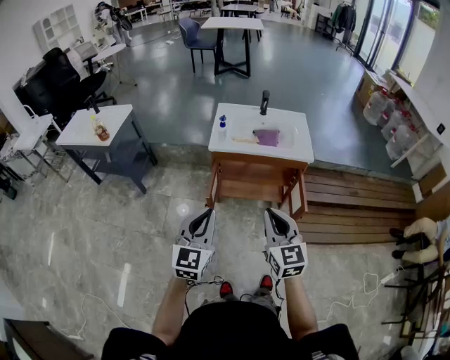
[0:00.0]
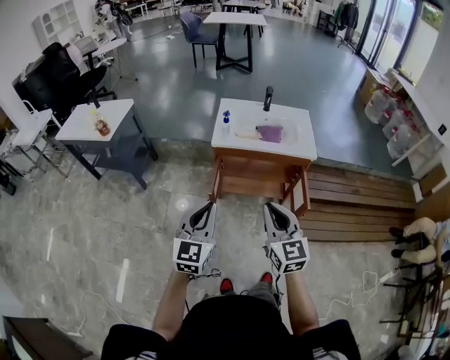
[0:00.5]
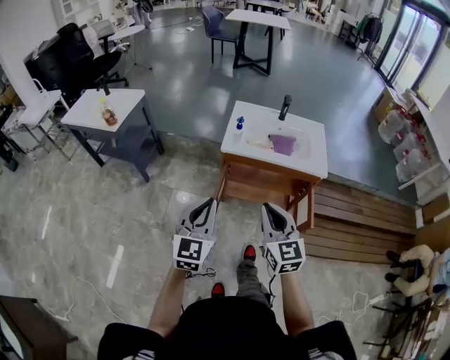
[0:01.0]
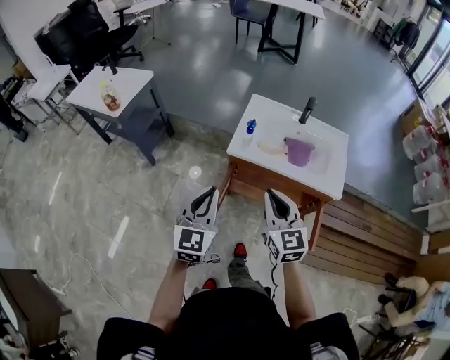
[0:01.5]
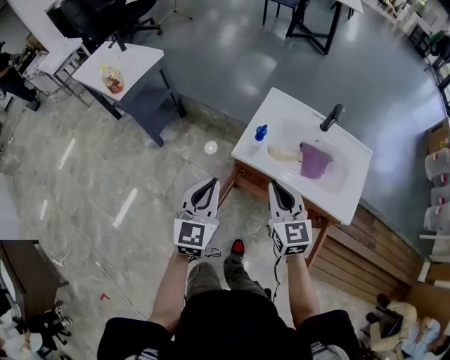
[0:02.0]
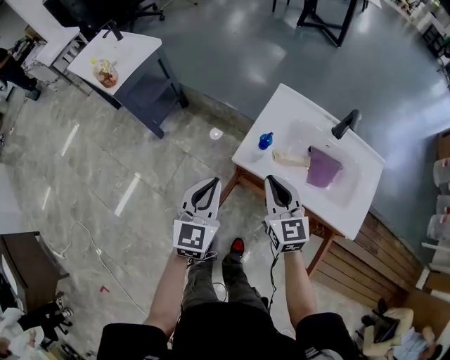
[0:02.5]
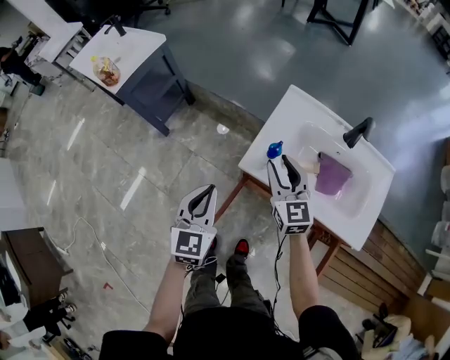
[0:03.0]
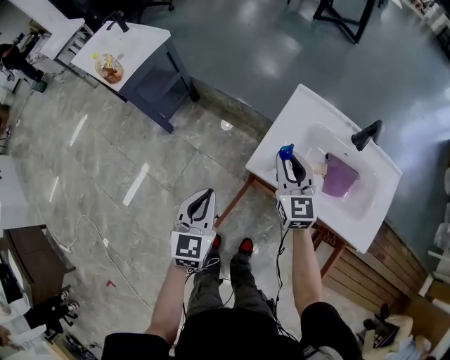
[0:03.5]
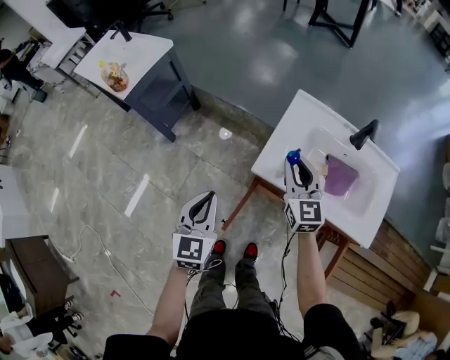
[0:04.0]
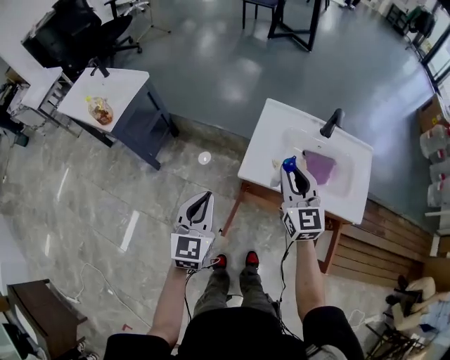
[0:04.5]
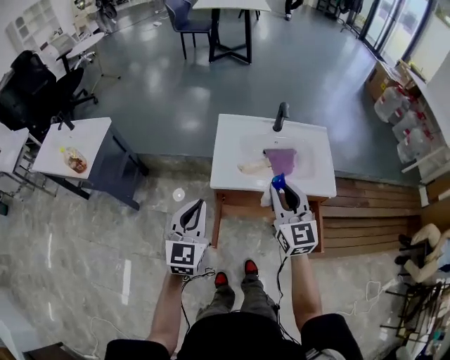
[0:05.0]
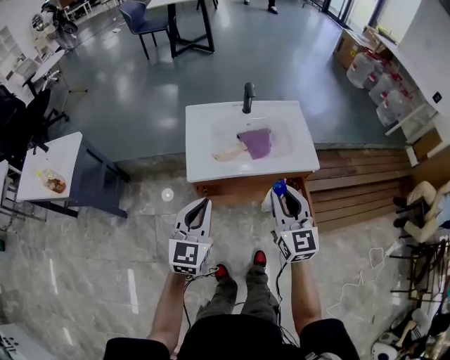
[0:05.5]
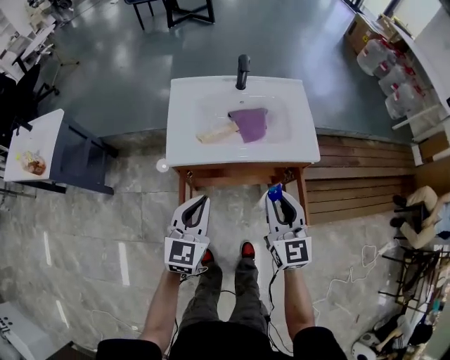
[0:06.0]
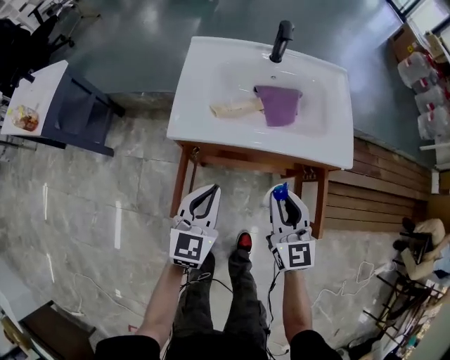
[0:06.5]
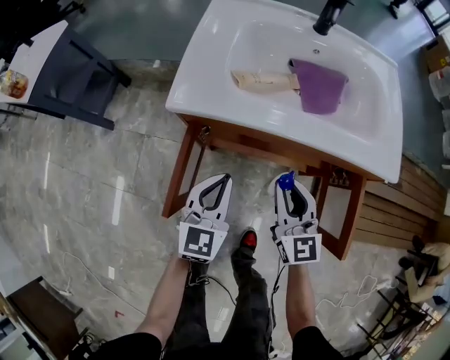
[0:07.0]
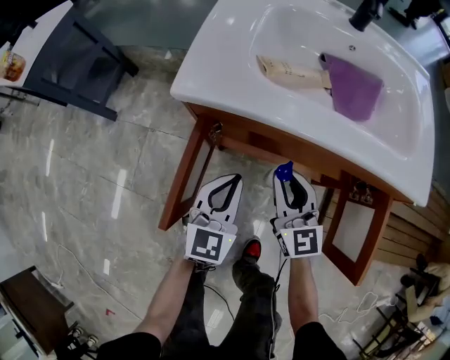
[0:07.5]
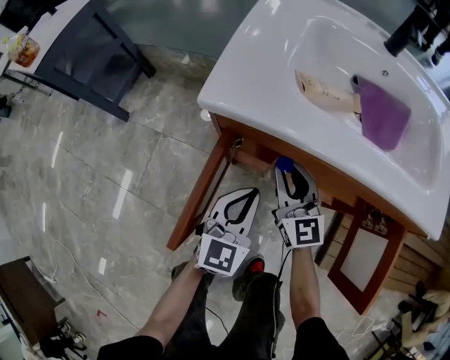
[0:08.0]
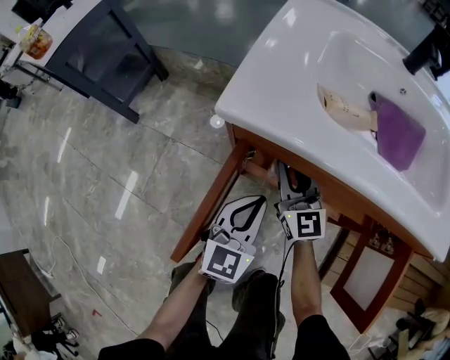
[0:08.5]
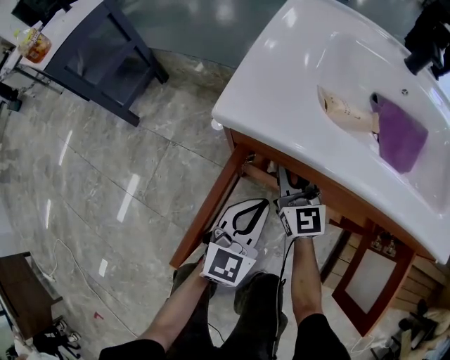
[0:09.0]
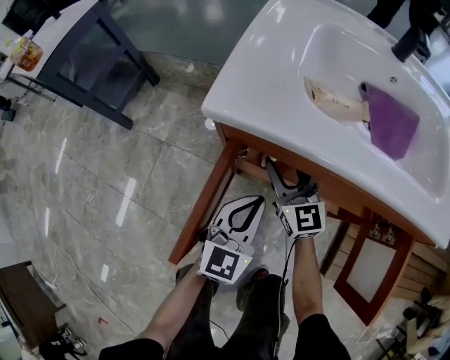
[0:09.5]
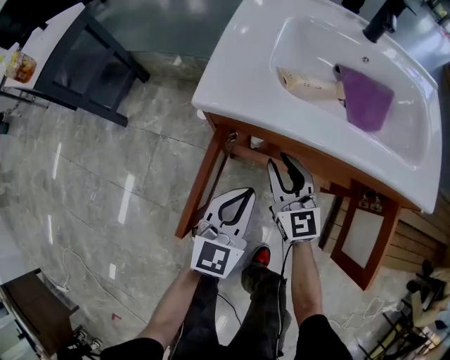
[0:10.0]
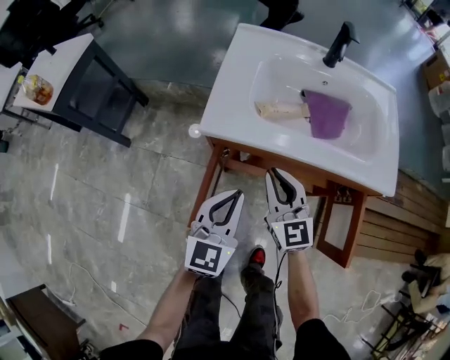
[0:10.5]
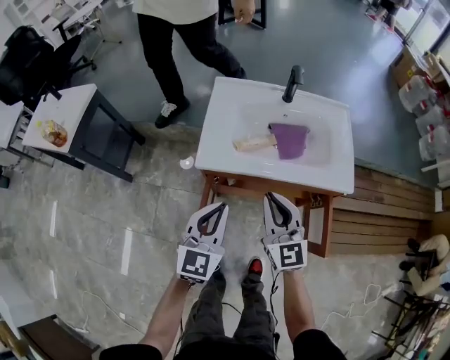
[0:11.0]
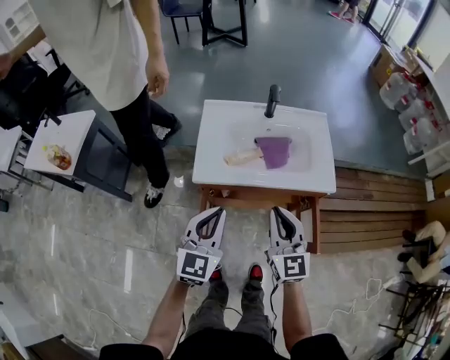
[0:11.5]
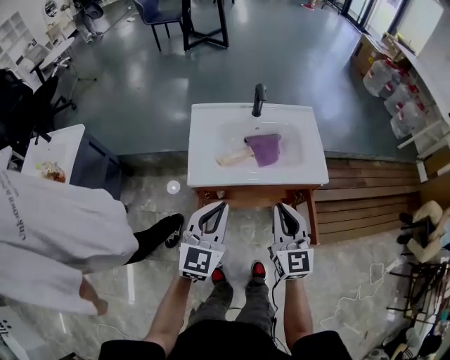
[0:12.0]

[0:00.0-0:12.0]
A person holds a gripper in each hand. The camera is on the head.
0:00.0 to 0:02.0: Both grippers move forward, some 35 cm. The right gripper changes its angle by some 20 degrees, while the left gripper turns by roughly 20 degrees.
0:02.0 to 0:04.0: The left gripper goes some 10 cm downward, to the left and forward, while the right gripper travels forward by roughly 15 cm.
0:04.0 to 0:06.0: The right gripper goes upward and returns, approximately 15 cm each way, and rotates roughly 30 degrees. The left gripper travels upward and back again, some 10 cm each way, and turns by approximately 40 degrees.
0:06.0 to 0:08.0: The right gripper moves downward and forward, roughly 40 cm, and turns by some 30 degrees; the left gripper heads downward, covering approximately 35 cm.
0:08.0 to 0:10.0: The left gripper shifts approximately 5 cm upward. The right gripper reaches approximately 5 cm forward, then returns, and opens, then closes again.
0:10.0 to 0:12.0: Both grippers move upward, about 35 cm. The right gripper rotates some 30 degrees, and closes up.

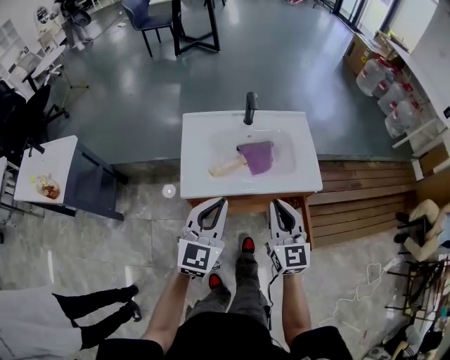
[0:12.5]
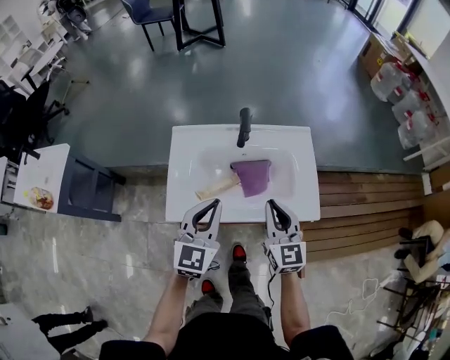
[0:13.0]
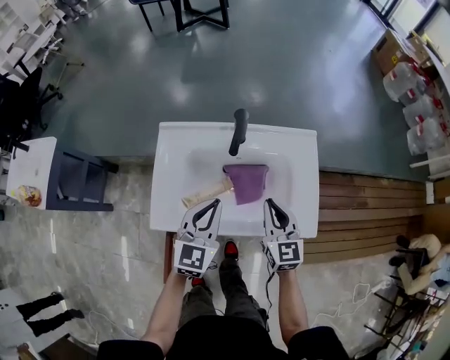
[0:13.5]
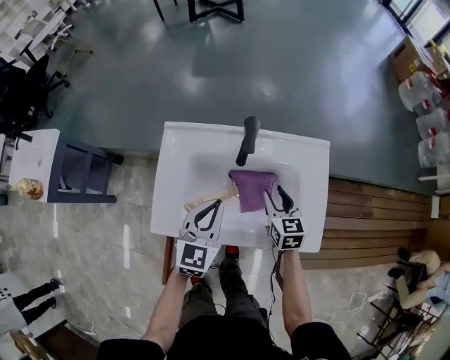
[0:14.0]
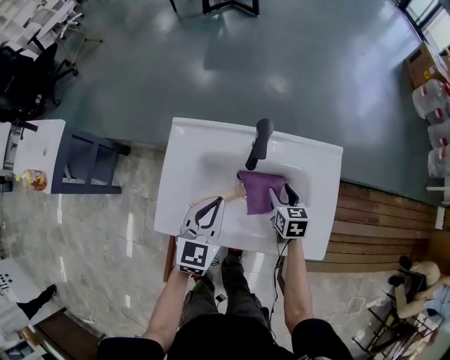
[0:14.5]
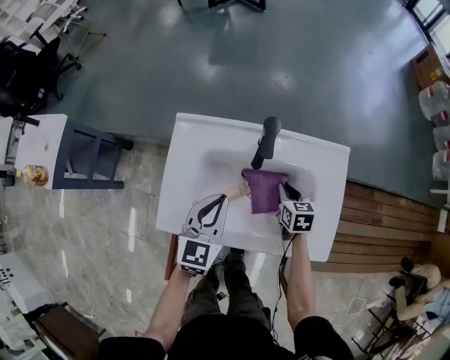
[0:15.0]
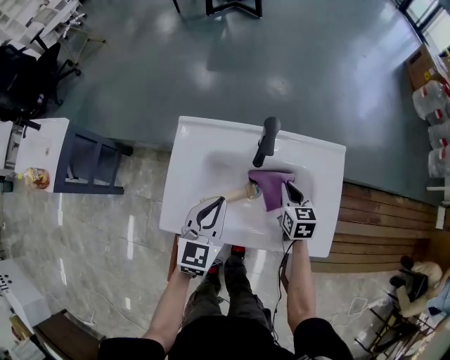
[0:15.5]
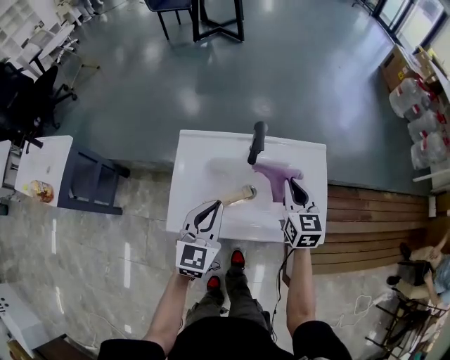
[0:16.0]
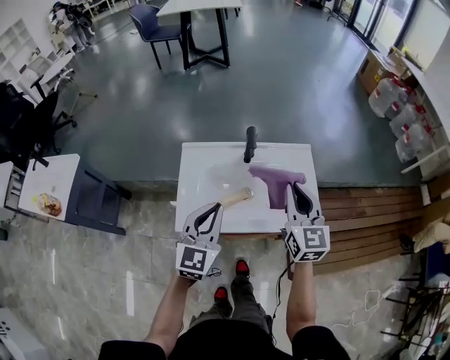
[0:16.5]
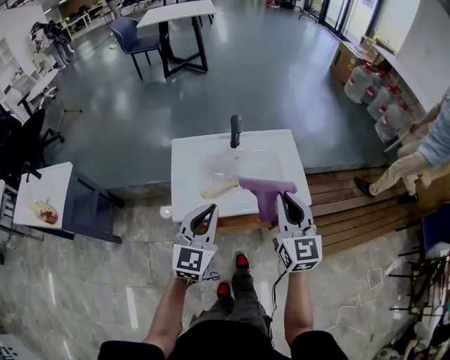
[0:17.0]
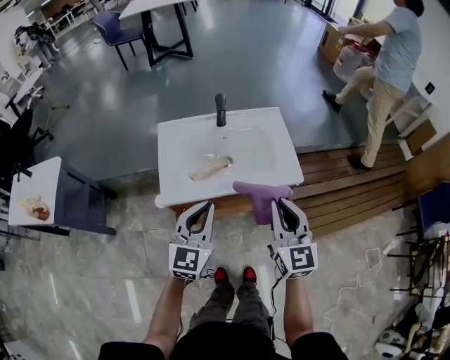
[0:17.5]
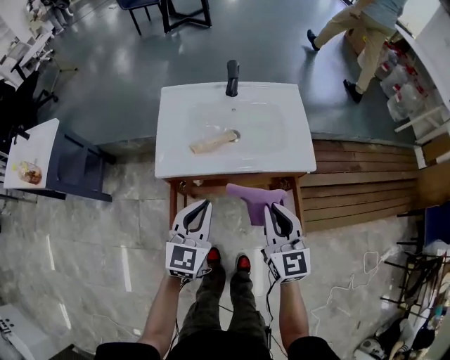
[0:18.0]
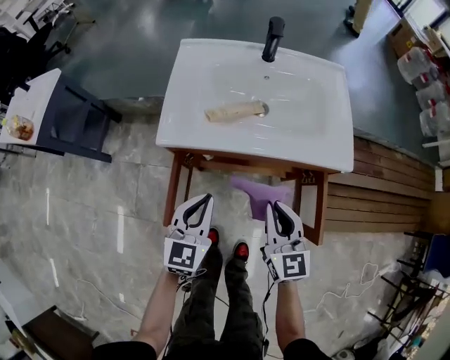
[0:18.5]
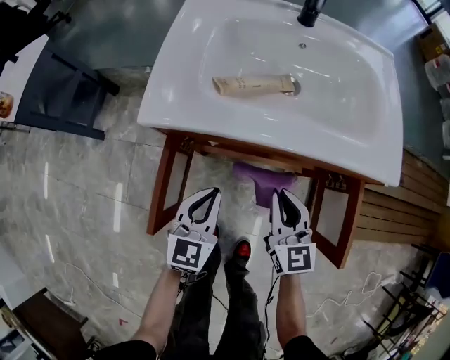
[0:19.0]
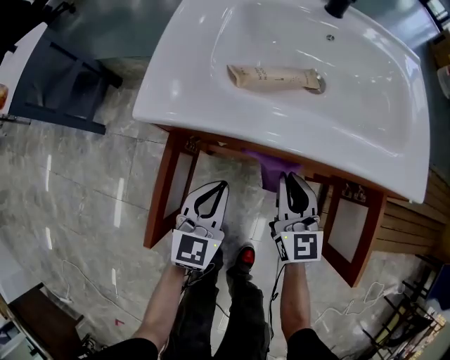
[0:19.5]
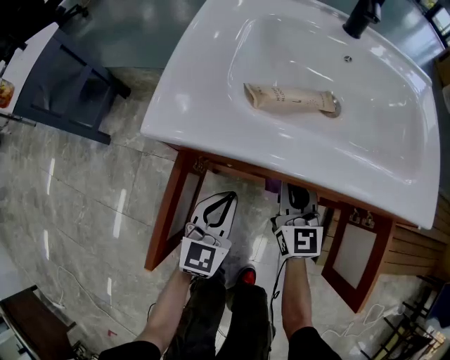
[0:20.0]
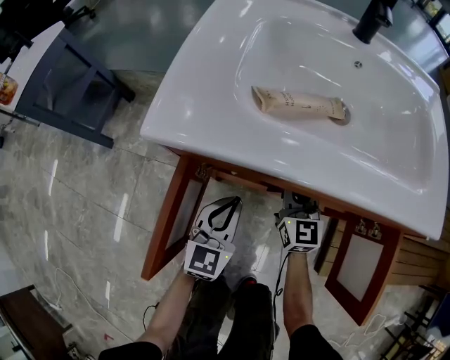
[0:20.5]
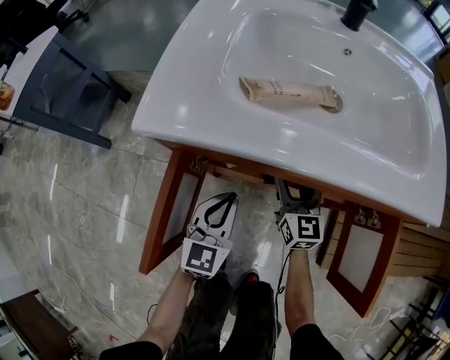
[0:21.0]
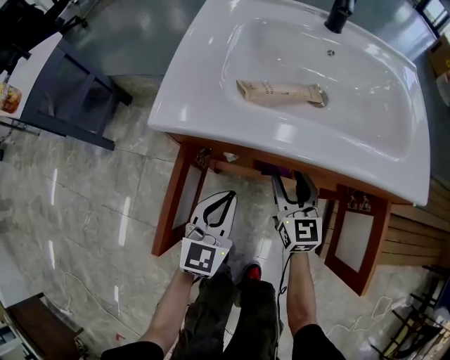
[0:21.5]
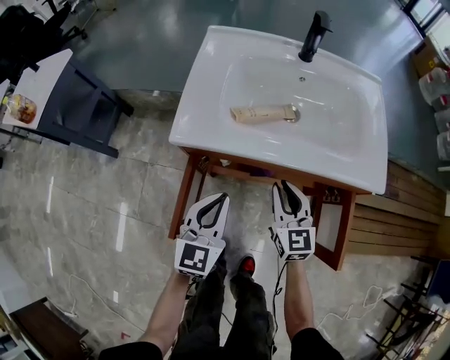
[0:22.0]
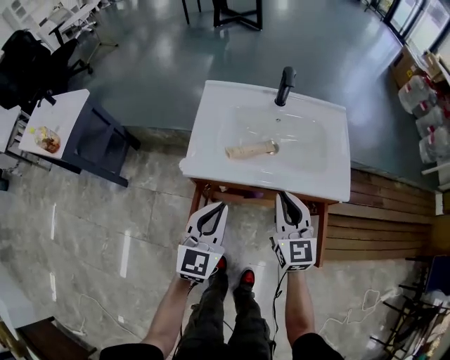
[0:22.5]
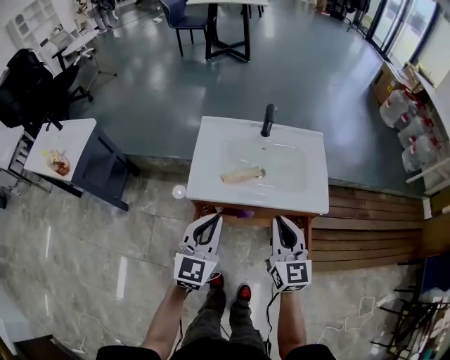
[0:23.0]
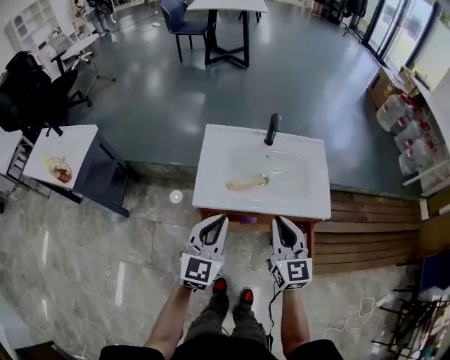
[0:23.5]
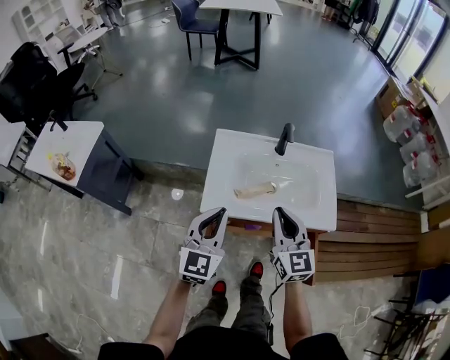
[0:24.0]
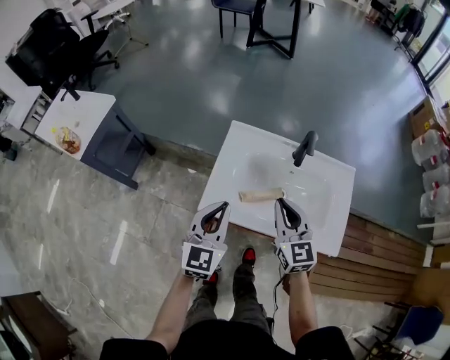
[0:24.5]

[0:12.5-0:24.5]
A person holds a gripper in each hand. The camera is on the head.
0:12.5 to 0:14.5: The two grippers go roughly 35 cm forward and downward. The left gripper swivels approximately 20 degrees; the right gripper angles its fingers downward, by roughly 40 degrees, and opens up.
0:14.5 to 0:16.5: The right gripper goes some 35 cm upward, points its fingers approximately 40 degrees further upward, and closes; the left gripper goes roughly 20 cm upward and backward.
0:16.5 to 0:18.5: Both grippers move downward and backward, about 30 cm.
0:18.5 to 0:20.5: The right gripper travels downward and forward by approximately 35 cm. The left gripper shifts roughly 25 cm downward.
0:20.5 to 0:22.5: The two grippers go approximately 35 cm upward. The right gripper opens and closes again.
0:22.5 to 0:24.5: The two grippers go about 15 cm forward and upward.

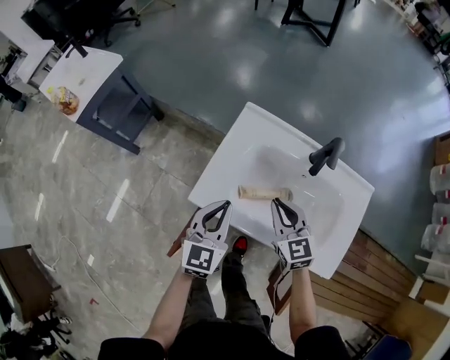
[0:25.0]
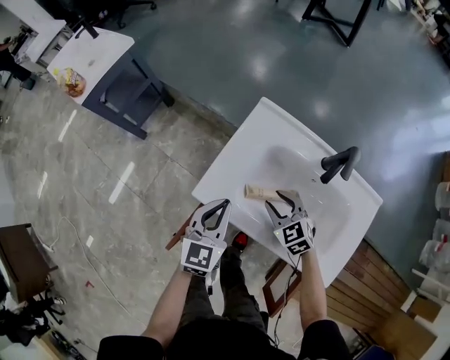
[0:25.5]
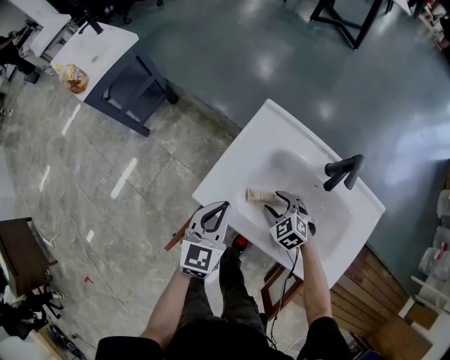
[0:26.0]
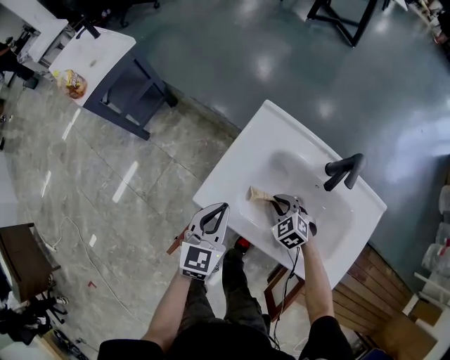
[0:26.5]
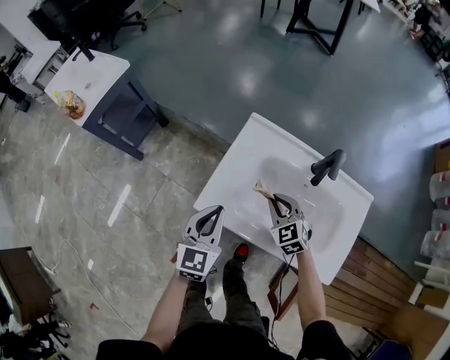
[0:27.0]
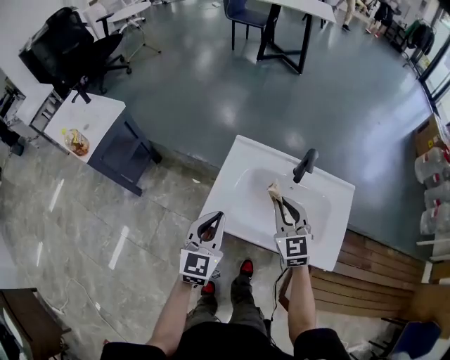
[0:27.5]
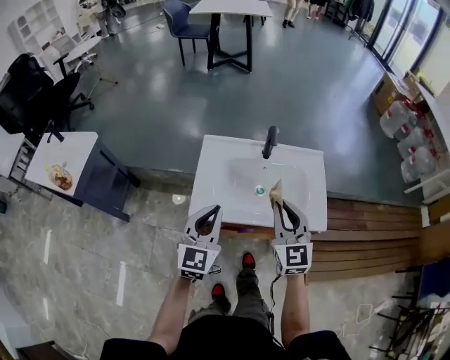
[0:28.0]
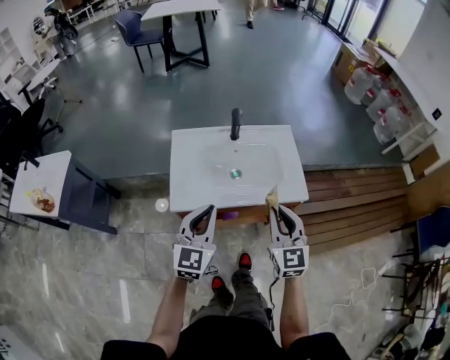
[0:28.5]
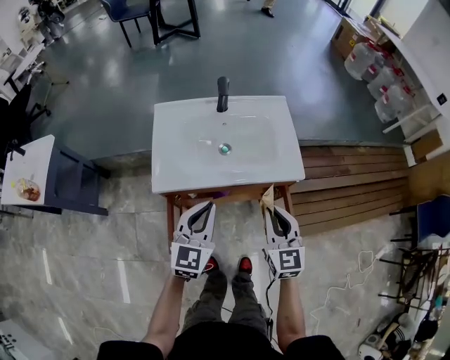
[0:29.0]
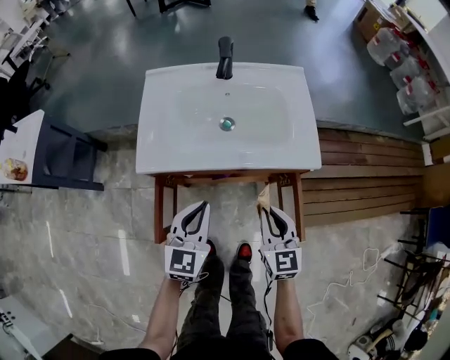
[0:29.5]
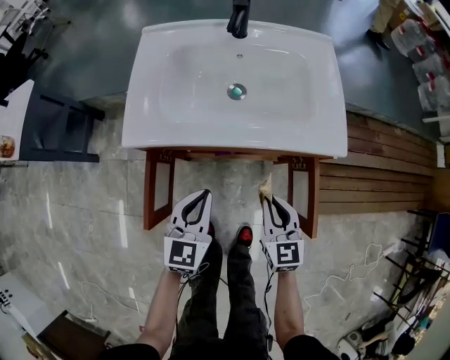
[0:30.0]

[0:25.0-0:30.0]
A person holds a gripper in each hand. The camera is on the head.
0:25.0 to 0:27.5: The two grippers go some 10 cm upward. The right gripper opens, then closes again.
0:27.5 to 0:30.0: The right gripper moves about 40 cm, and turns by roughly 30 degrees; the left gripper goes roughly 20 cm downward, and rotates some 20 degrees.
